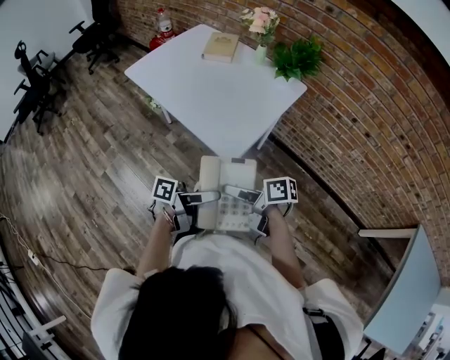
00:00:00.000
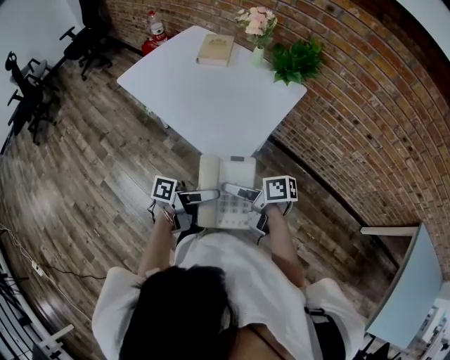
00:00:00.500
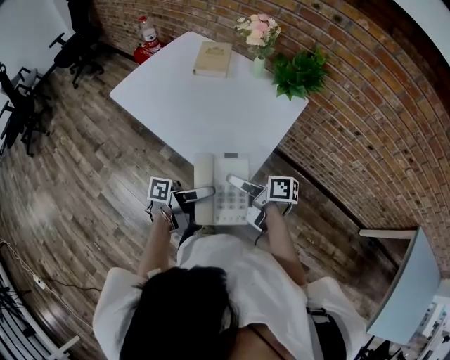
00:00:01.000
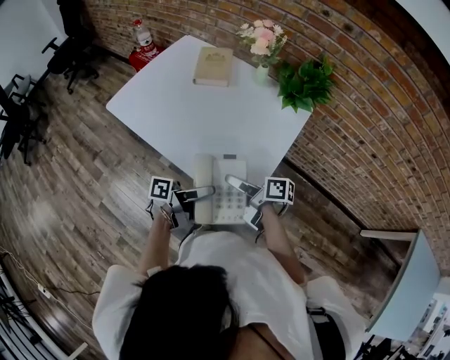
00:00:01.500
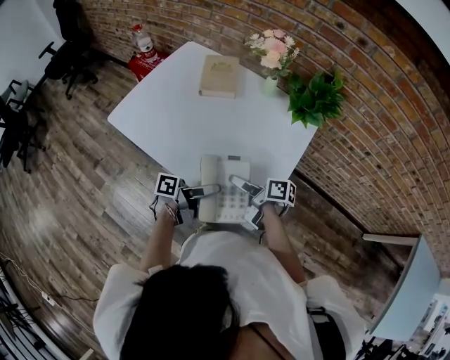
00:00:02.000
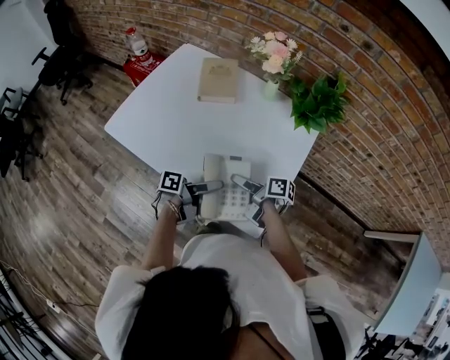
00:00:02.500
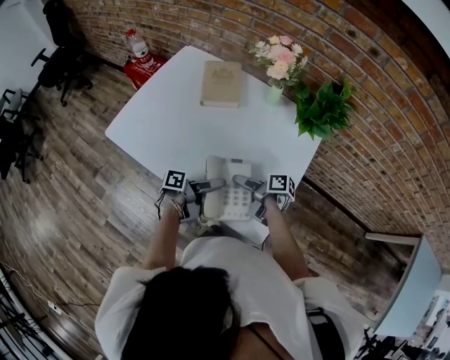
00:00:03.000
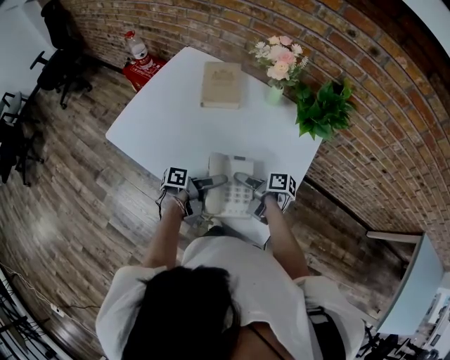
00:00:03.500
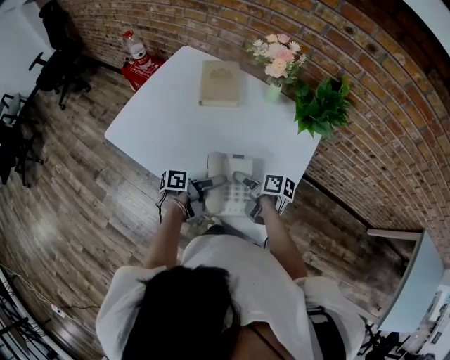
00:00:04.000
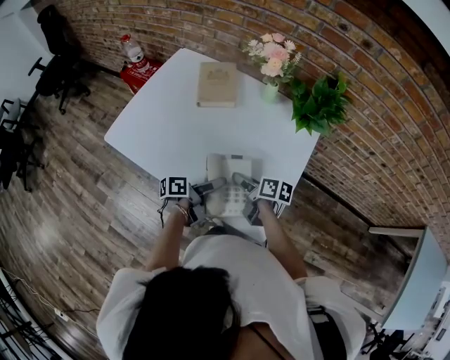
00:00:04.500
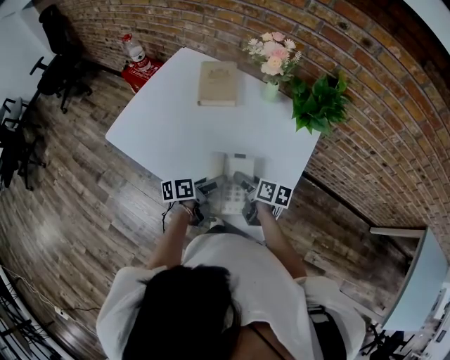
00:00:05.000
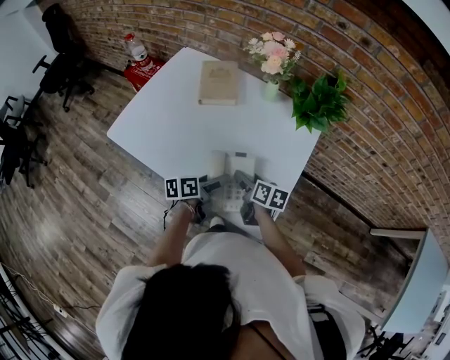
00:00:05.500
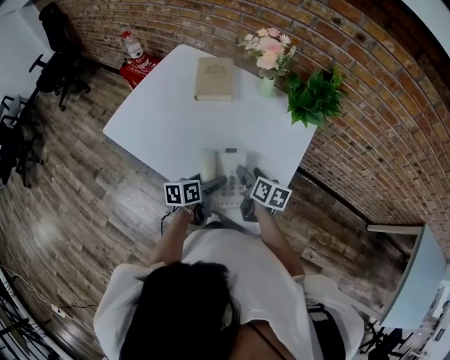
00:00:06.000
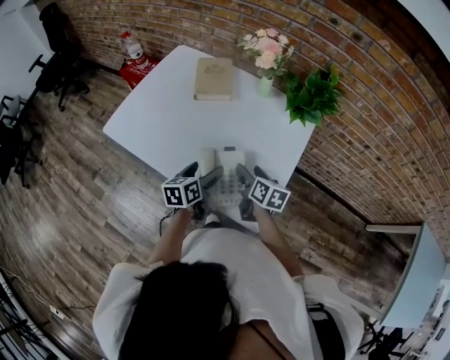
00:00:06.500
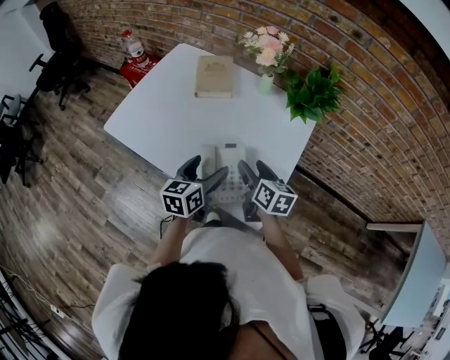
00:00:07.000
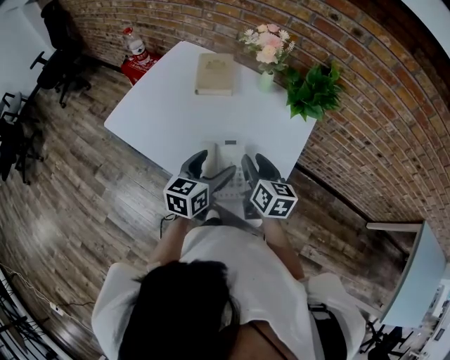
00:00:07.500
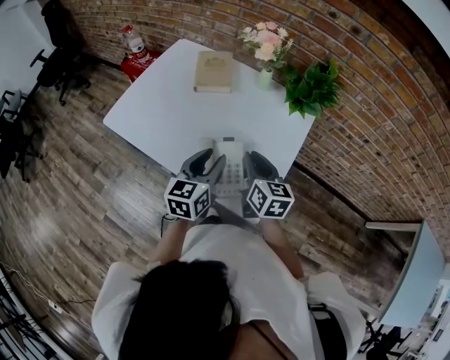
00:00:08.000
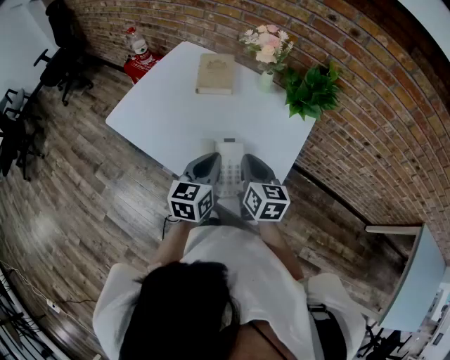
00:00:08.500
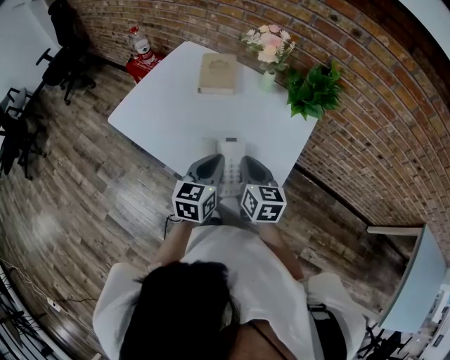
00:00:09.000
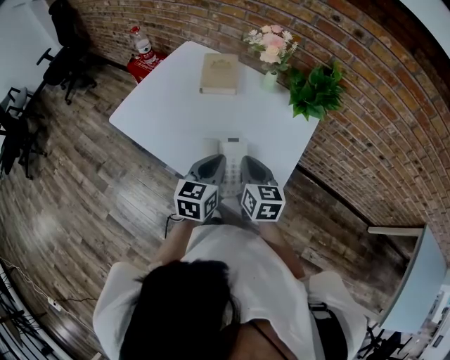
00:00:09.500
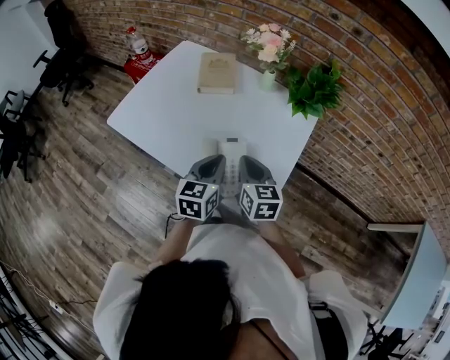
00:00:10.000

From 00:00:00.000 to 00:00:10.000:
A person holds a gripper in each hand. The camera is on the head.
From 00:00:00.000 to 00:00:02.000: The right gripper shifts by roughly 30 cm, and changes its angle by some 20 degrees.
From 00:00:02.000 to 00:00:04.000: The right gripper ends up about 10 cm from where it was.
From 00:00:04.000 to 00:00:06.000: The right gripper changes its angle by about 30 degrees.
From 00:00:06.000 to 00:00:08.000: The right gripper is displaced upward by approximately 10 cm, rotates about 20 degrees, and closes.

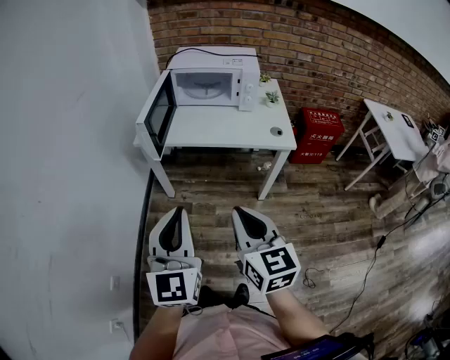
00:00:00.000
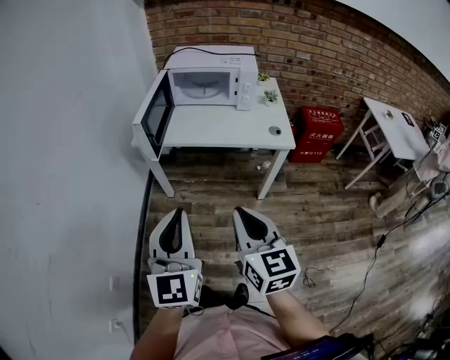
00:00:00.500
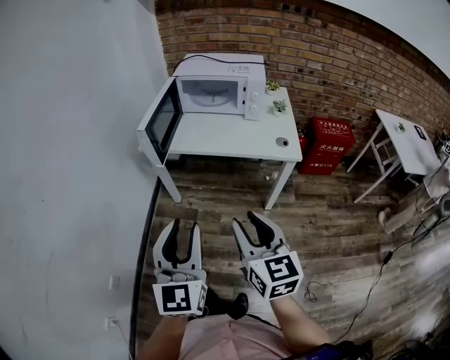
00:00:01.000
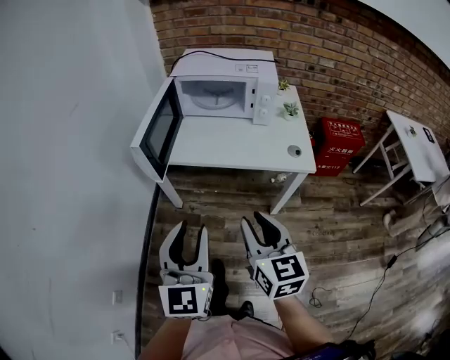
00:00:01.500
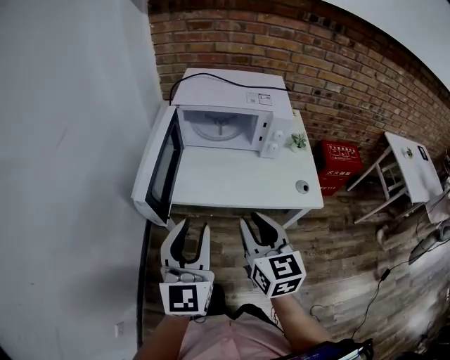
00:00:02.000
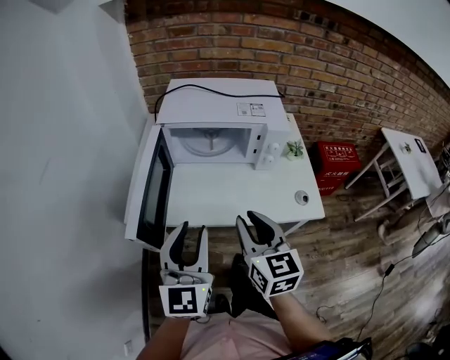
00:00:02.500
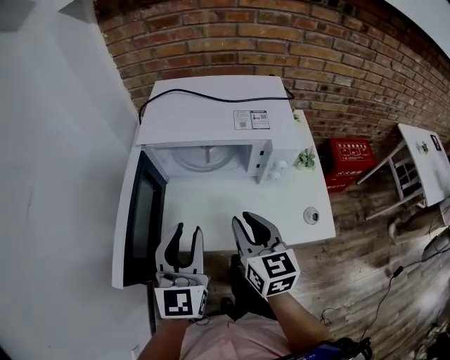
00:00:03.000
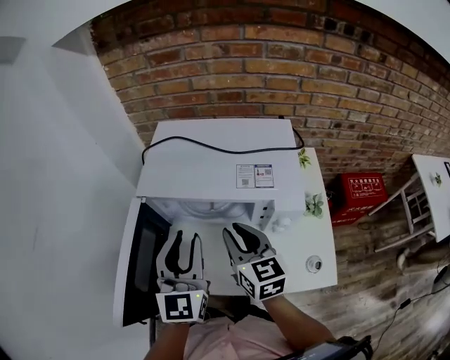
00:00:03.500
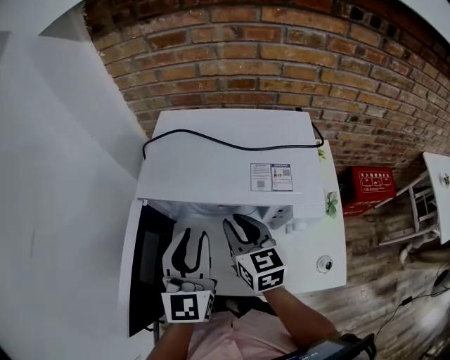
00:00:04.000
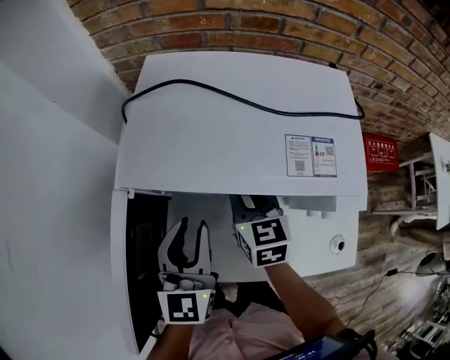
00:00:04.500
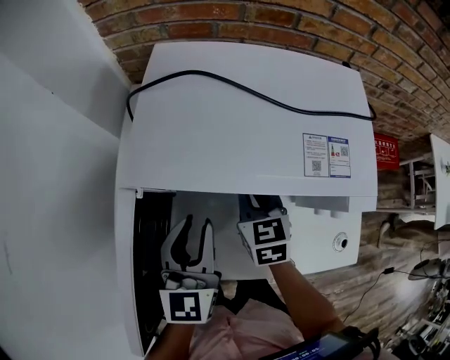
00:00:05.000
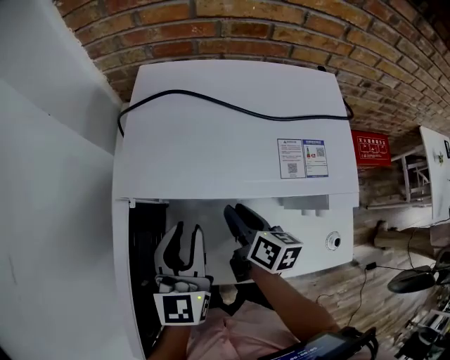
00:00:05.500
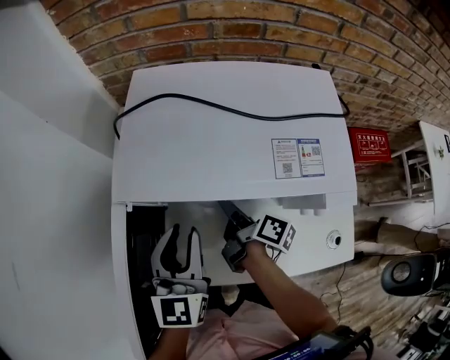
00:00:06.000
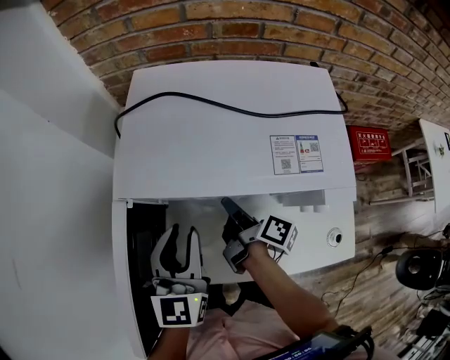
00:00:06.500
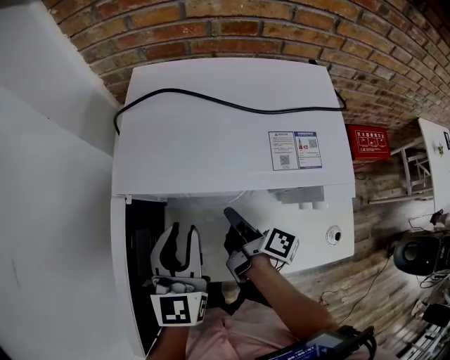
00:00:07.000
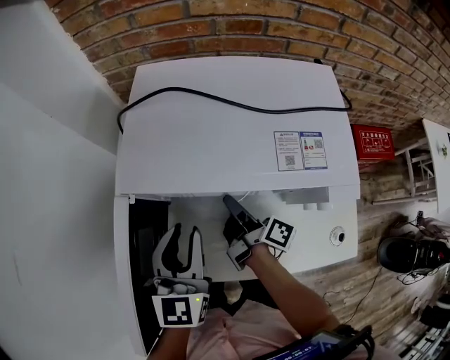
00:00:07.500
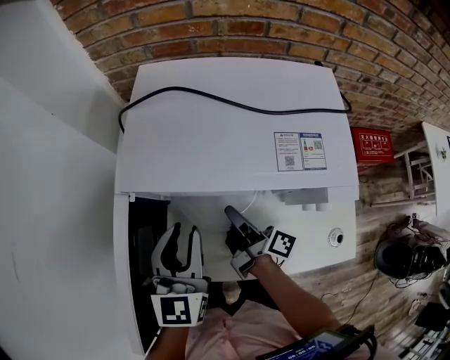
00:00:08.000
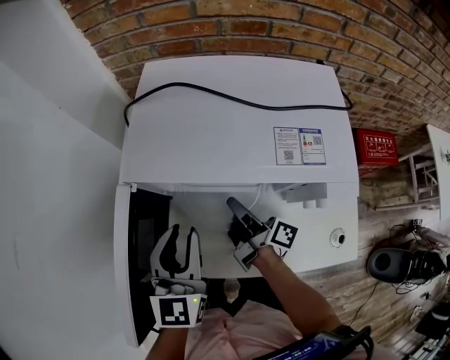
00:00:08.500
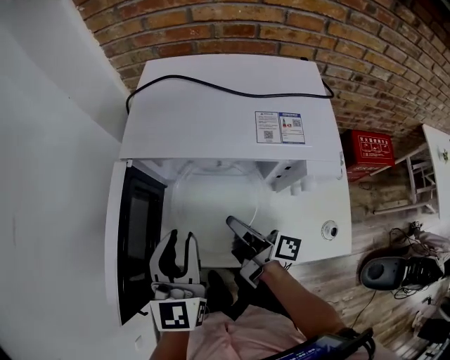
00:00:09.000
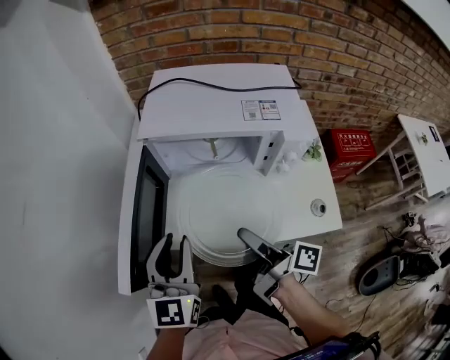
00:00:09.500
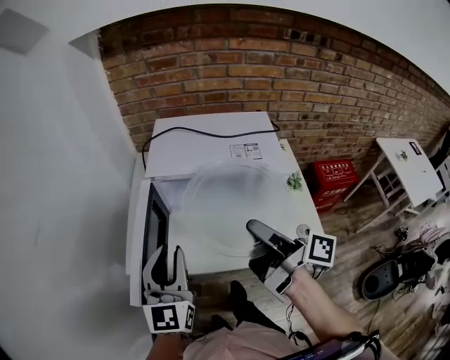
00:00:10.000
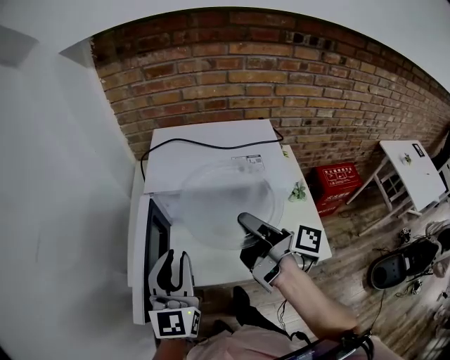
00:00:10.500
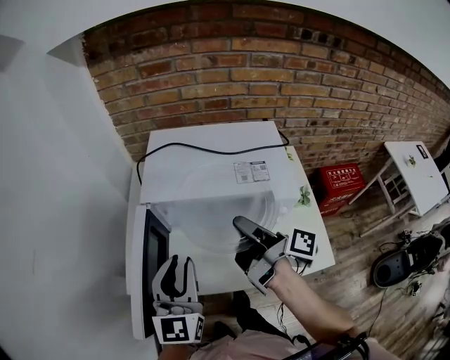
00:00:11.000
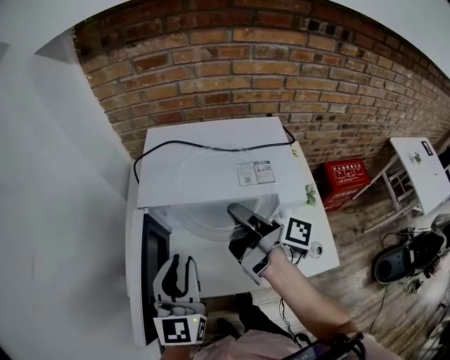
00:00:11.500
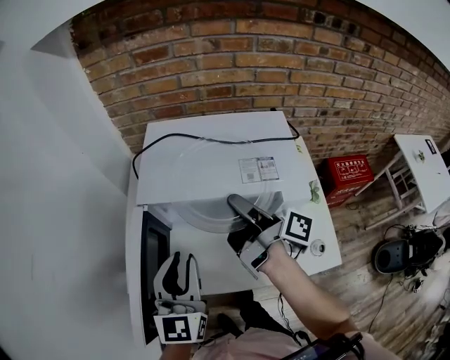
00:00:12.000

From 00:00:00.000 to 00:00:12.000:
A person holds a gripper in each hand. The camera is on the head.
From 00:00:00.000 to 00:00:02.000: Both grippers move forward, approximately 25 cm. The right gripper opens. Meanwhile the left gripper opens.
From 00:00:02.000 to 00:00:04.000: The two grippers go roughly 35 cm forward.
From 00:00:04.000 to 00:00:06.000: The left gripper is displaced downward by some 5 cm. Meanwhile the right gripper moves downward, roughly 15 cm, rotates around the line of its fingers by some 70 degrees, clockwise from behind, and closes and opens again.
From 00:00:06.000 to 00:00:08.000: The right gripper closes its fingers.
From 00:00:08.000 to 00:00:10.000: The right gripper moves upward and backward, about 30 cm, while the left gripper goes about 20 cm backward and upward.
From 00:00:10.000 to 00:00:12.000: The right gripper travels forward by roughly 20 cm; the left gripper is displaced forward by some 10 cm.

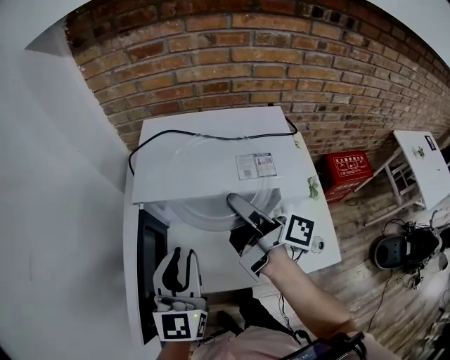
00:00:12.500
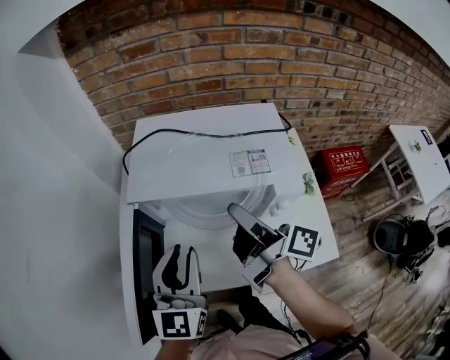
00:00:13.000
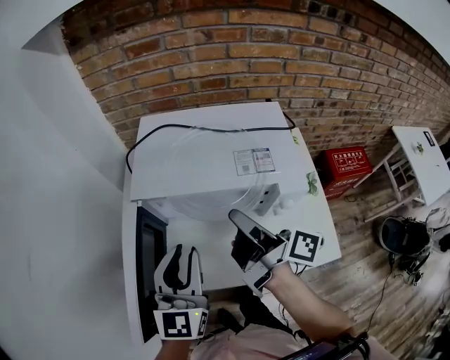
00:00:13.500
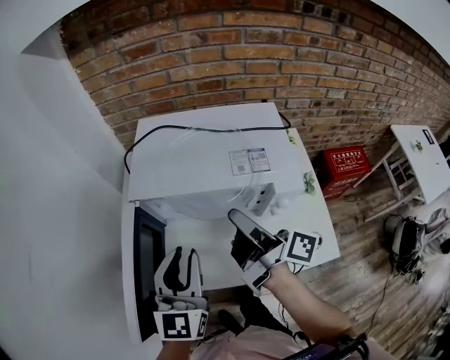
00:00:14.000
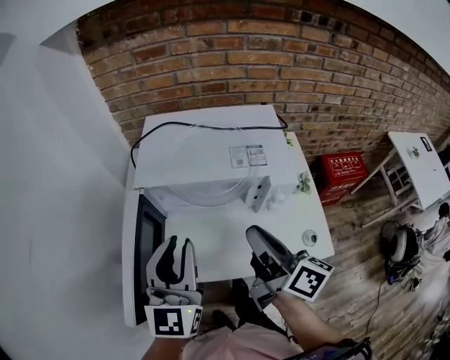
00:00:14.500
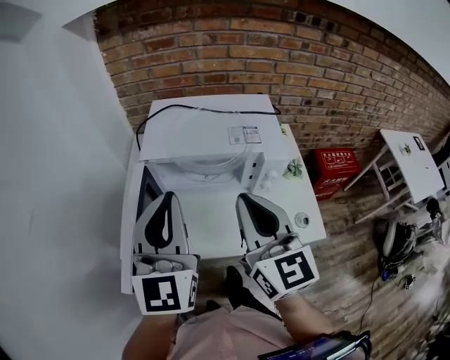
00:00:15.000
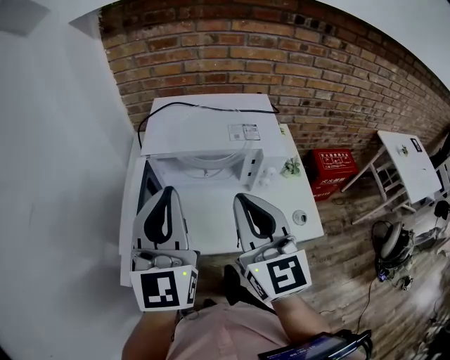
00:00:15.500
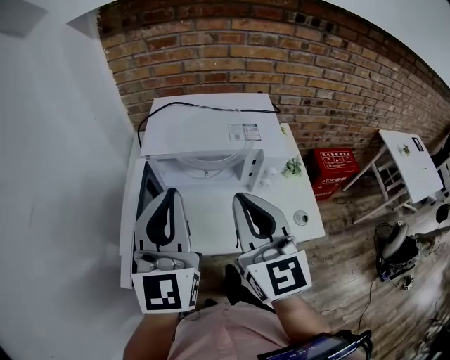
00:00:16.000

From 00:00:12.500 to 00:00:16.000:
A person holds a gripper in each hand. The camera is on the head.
From 00:00:12.500 to 00:00:14.500: The left gripper heads upward, covering some 5 cm. The right gripper is displaced backward by approximately 15 cm, changes its angle by roughly 30 degrees, and closes up.
From 00:00:14.500 to 00:00:16.000: The left gripper goes about 10 cm upward, and closes up. Meanwhile the right gripper shifts about 10 cm upward and backward, and rolls counterclockwise, seen from behind, by roughly 60 degrees.

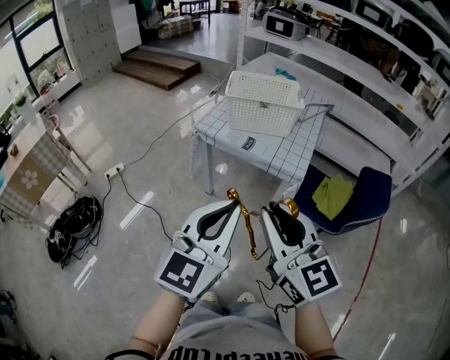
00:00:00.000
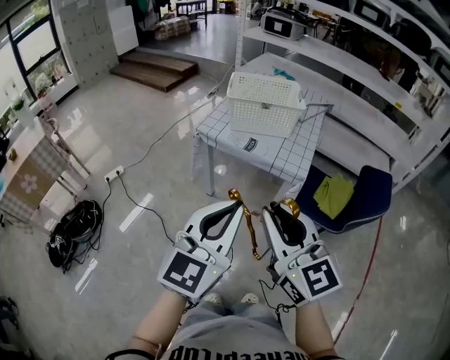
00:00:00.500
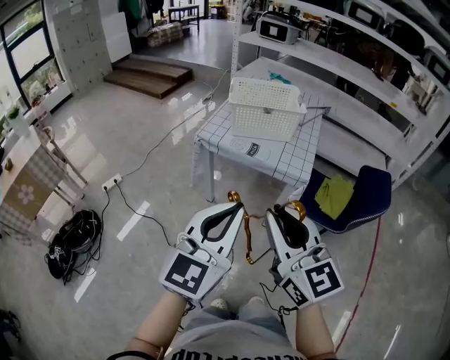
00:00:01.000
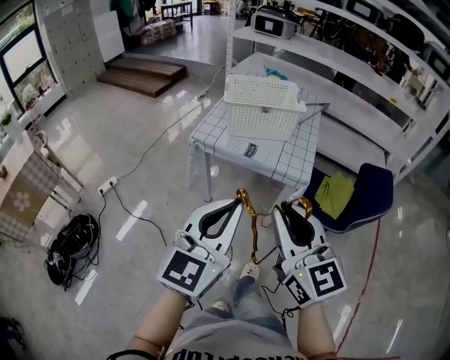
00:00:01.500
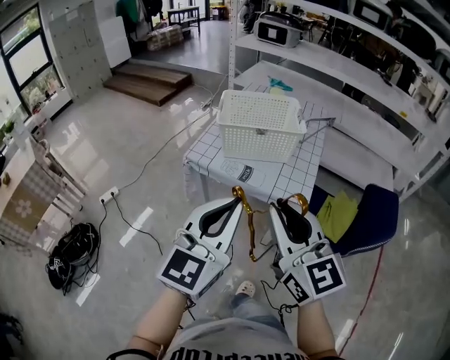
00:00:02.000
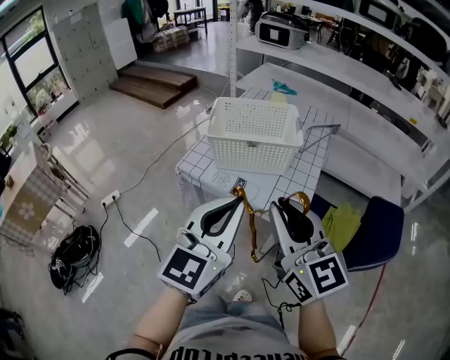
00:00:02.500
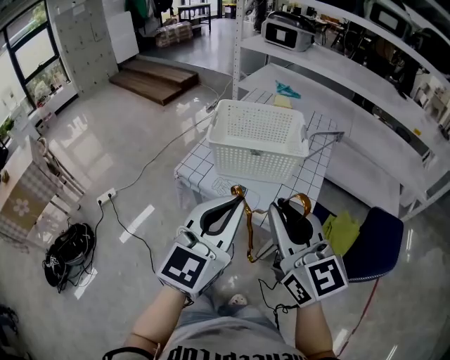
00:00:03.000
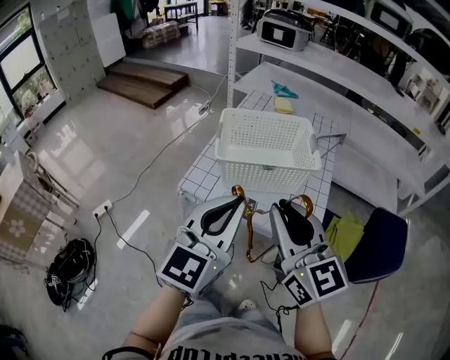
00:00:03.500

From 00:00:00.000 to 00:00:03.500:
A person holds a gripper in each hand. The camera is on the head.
From 00:00:00.000 to 00:00:02.000: Both grippers move forward, about 15 cm.
From 00:00:02.000 to 00:00:03.500: Both grippers move forward, roughly 20 cm.
